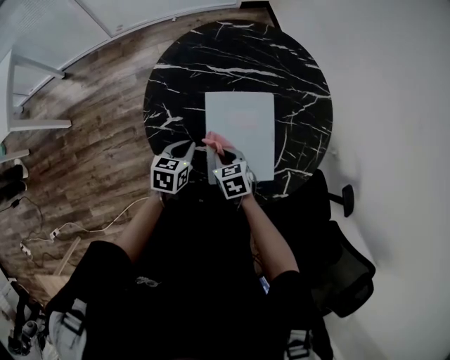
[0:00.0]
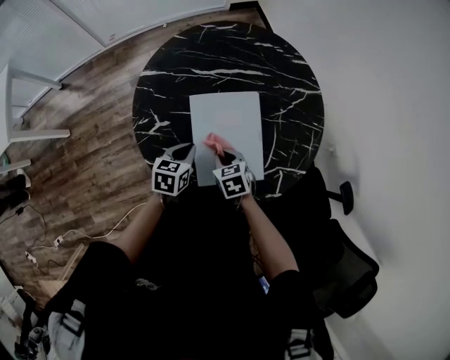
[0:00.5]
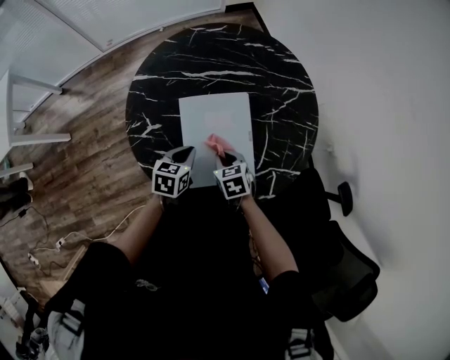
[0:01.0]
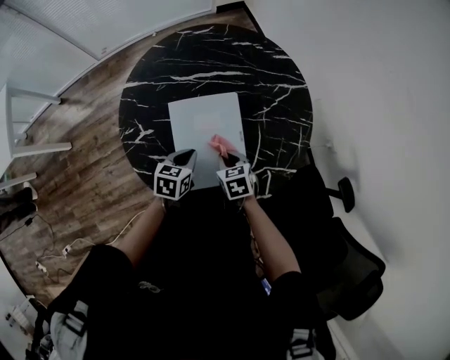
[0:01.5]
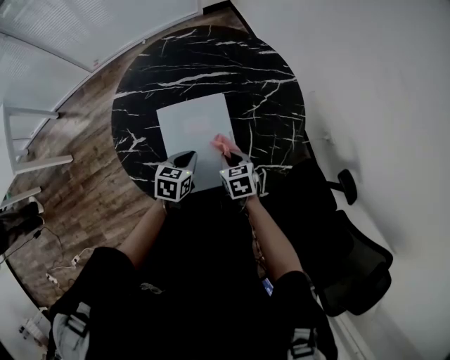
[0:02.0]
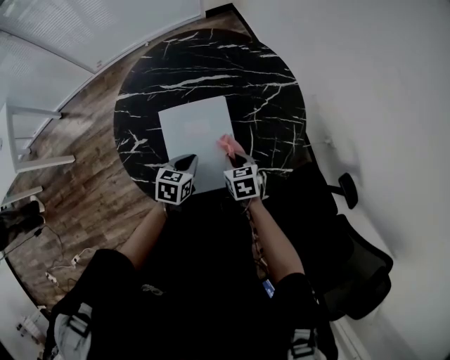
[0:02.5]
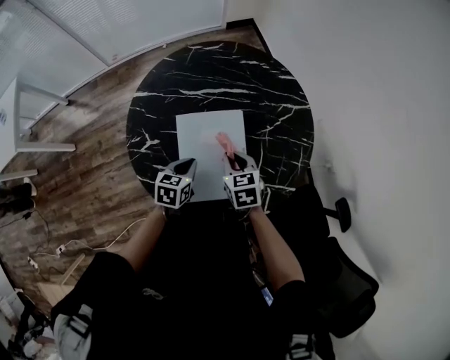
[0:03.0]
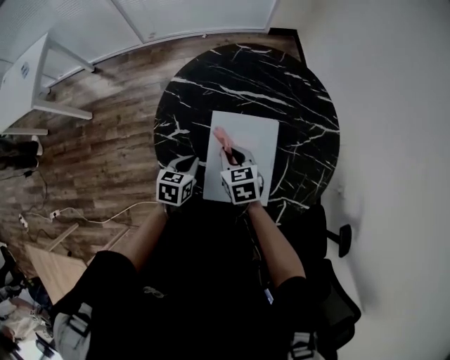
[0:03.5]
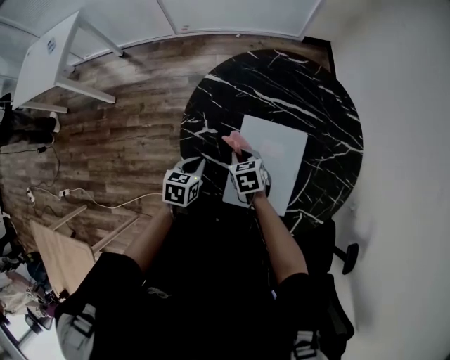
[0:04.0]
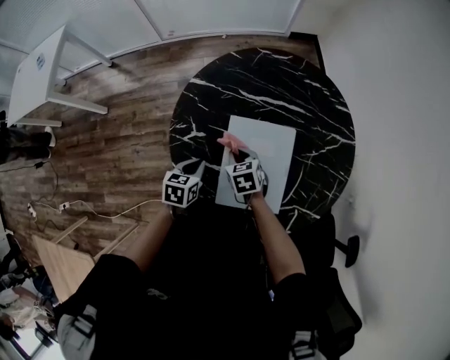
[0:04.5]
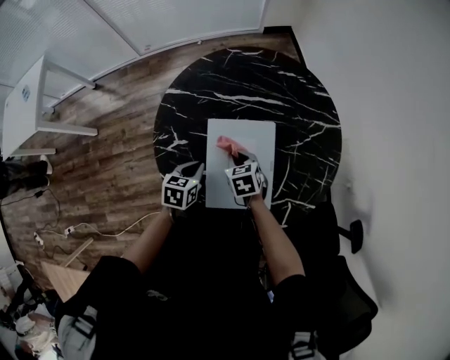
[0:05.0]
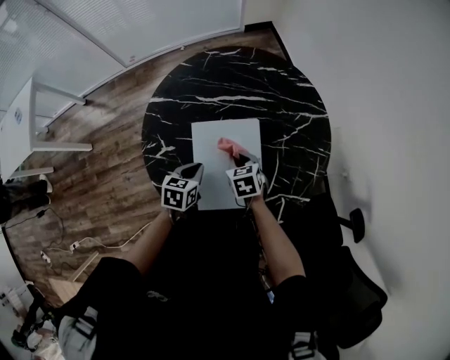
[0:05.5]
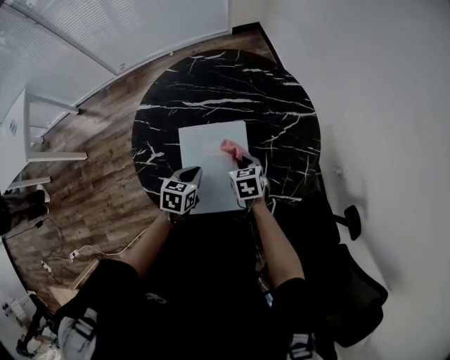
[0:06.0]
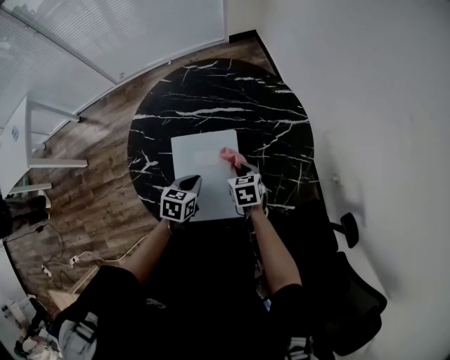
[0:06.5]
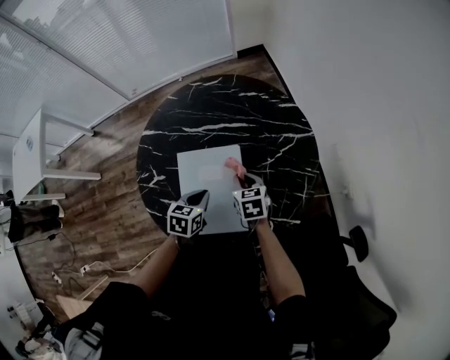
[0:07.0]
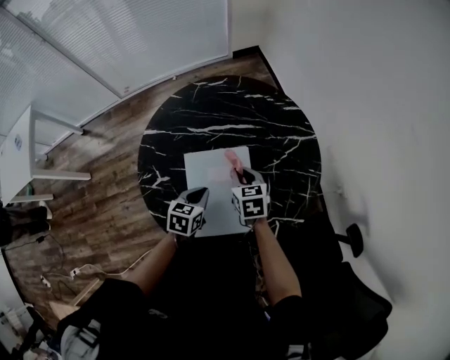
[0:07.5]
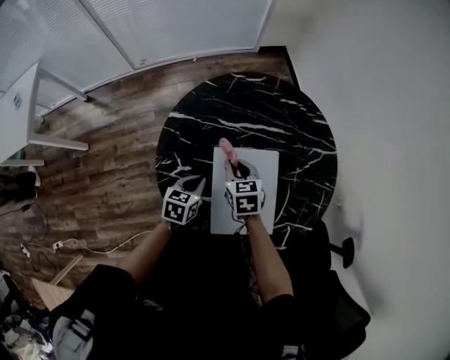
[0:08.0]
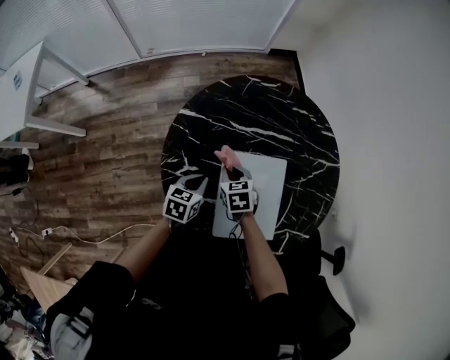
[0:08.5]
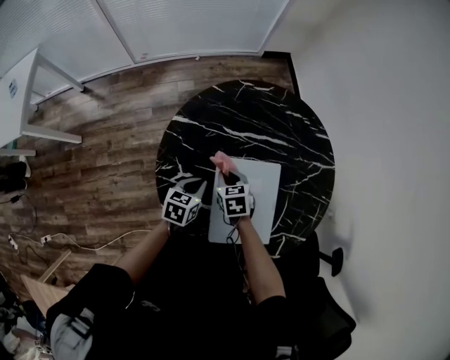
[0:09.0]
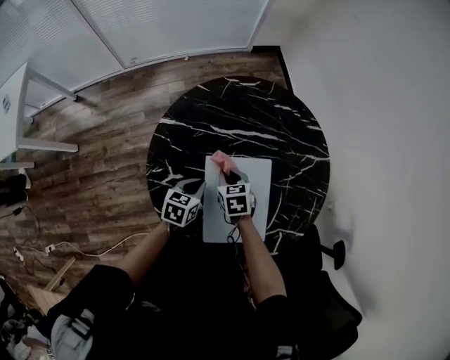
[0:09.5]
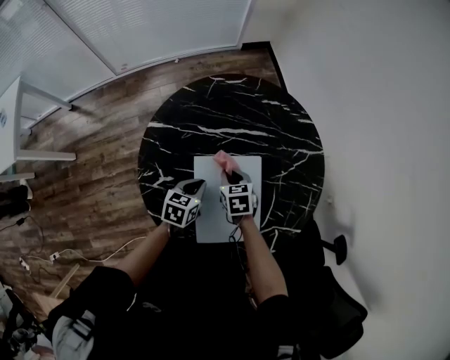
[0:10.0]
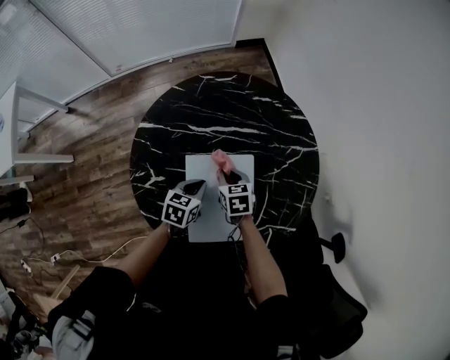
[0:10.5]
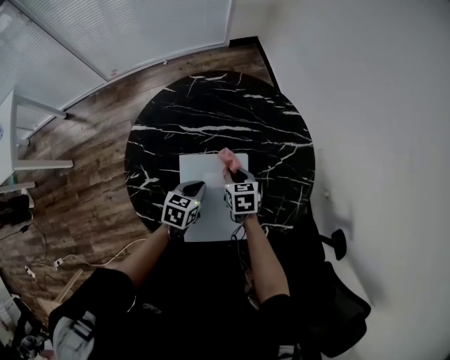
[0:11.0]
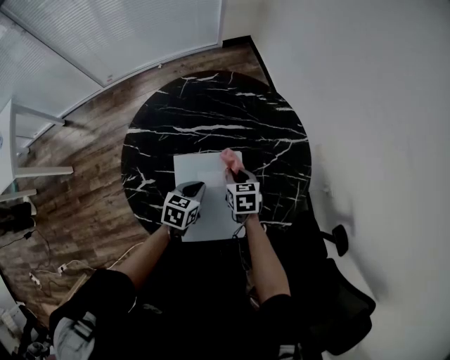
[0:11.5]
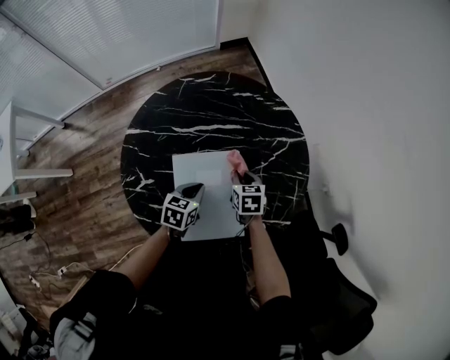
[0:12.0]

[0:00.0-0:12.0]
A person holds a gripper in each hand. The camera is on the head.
0:00.0 to 0:02.0: The grippers both shift to the right by roughly 15 cm.
0:02.0 to 0:04.0: The right gripper moves roughly 10 cm upward and comes back, and rotates approximately 30 degrees; the left gripper shifts by approximately 20 cm, and turns by approximately 30 degrees.
0:04.0 to 0:06.0: Both grippers move to the right, about 20 cm. The left gripper swivels some 20 degrees. The right gripper changes its angle by roughly 20 degrees.
0:06.0 to 0:08.0: The right gripper travels to the left and upward by some 15 cm. The left gripper shifts some 10 cm to the left.
0:08.0 to 0:10.0: The right gripper heads downward and to the right, covering some 10 cm. The left gripper travels to the right by approximately 5 cm.
0:10.0 to 0:12.0: The right gripper moves to the right, roughly 15 cm. Meanwhile the left gripper goes about 10 cm to the right.

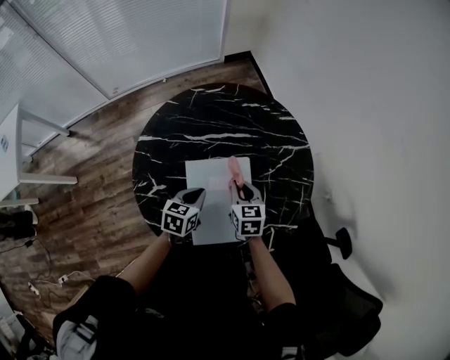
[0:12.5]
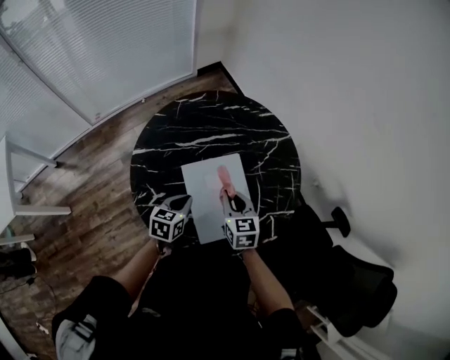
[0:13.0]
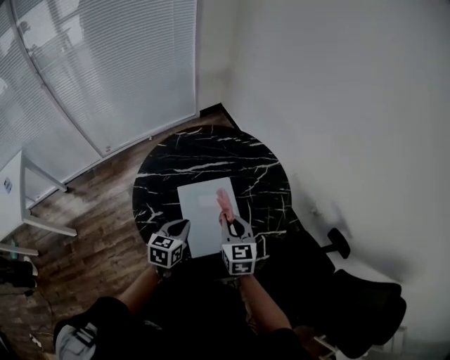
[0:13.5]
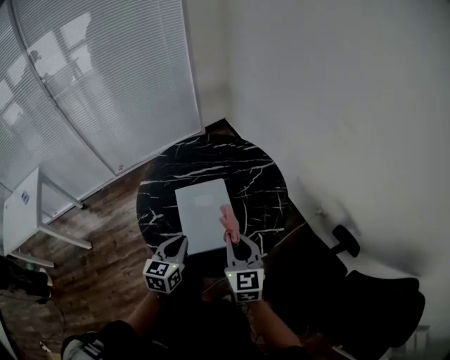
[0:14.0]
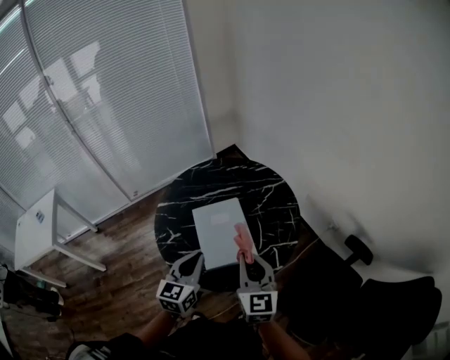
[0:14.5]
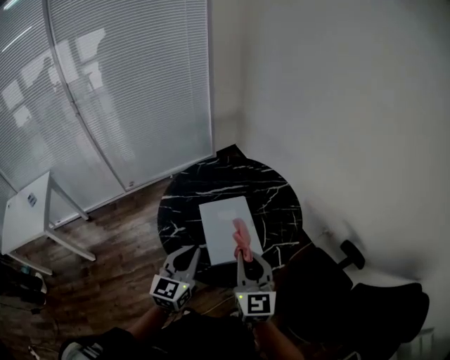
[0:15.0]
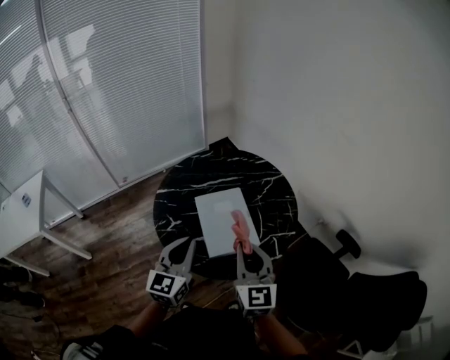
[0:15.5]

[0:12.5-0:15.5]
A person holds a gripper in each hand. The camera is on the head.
0:12.5 to 0:14.0: The left gripper goes approximately 25 cm backward and upward, and swivels some 20 degrees. The right gripper is displaced backward, upward and to the right by roughly 30 cm, and rotates some 30 degrees.
0:14.0 to 0:15.5: The two grippers go some 15 cm upward, to the left and backward. The left gripper swivels approximately 20 degrees.

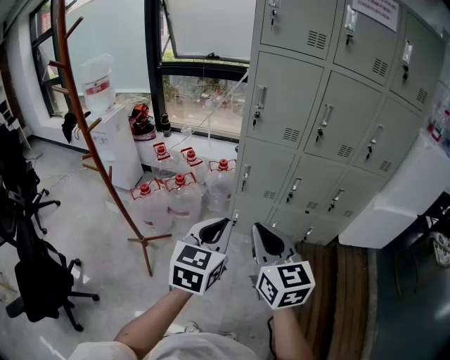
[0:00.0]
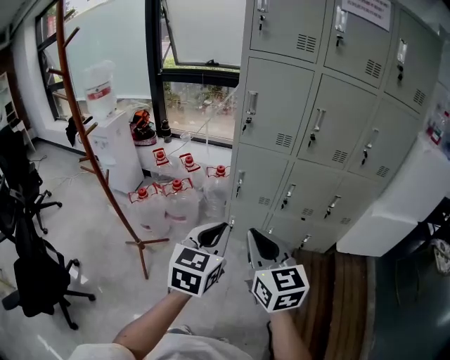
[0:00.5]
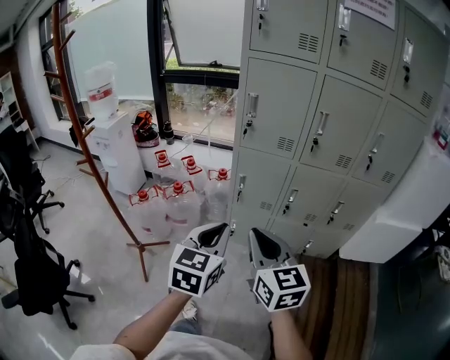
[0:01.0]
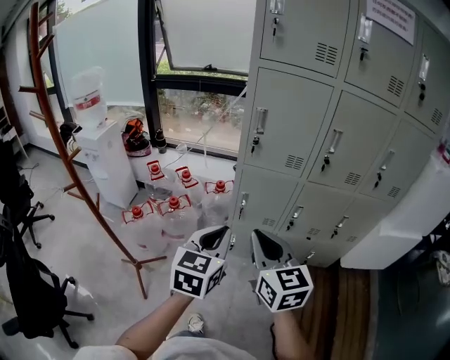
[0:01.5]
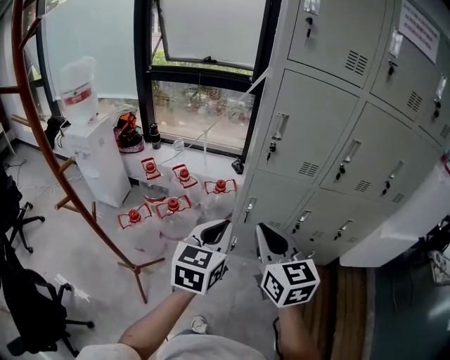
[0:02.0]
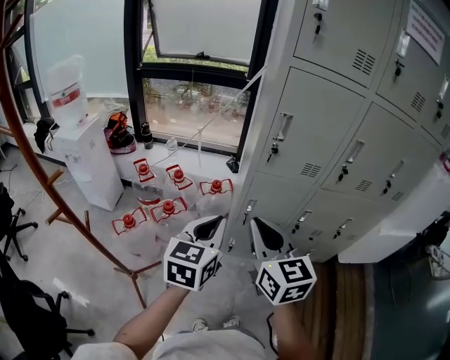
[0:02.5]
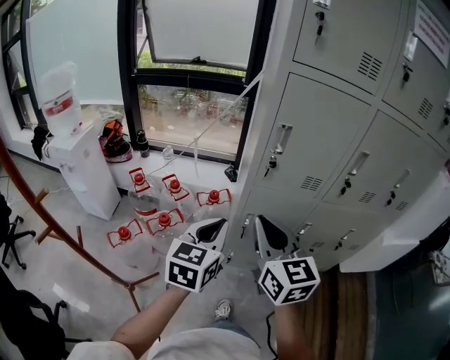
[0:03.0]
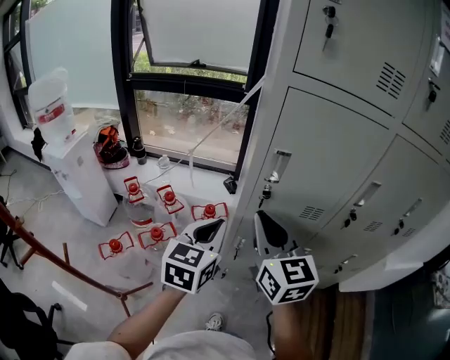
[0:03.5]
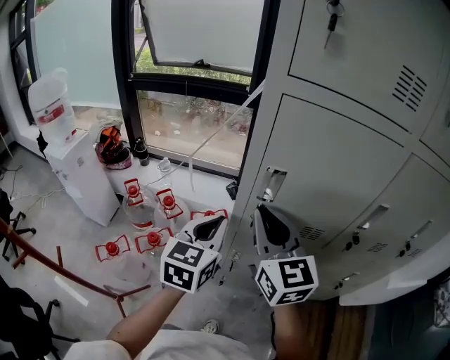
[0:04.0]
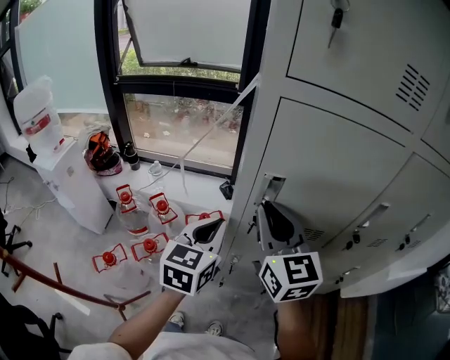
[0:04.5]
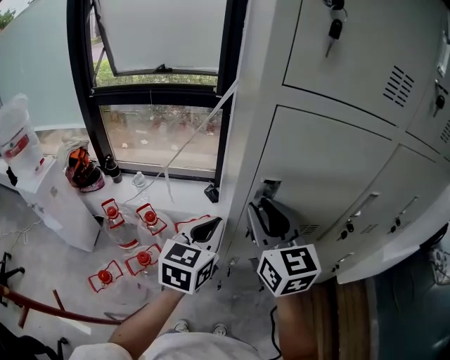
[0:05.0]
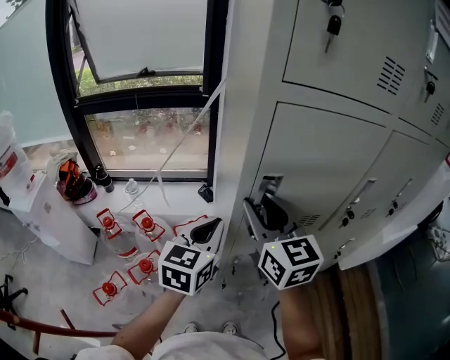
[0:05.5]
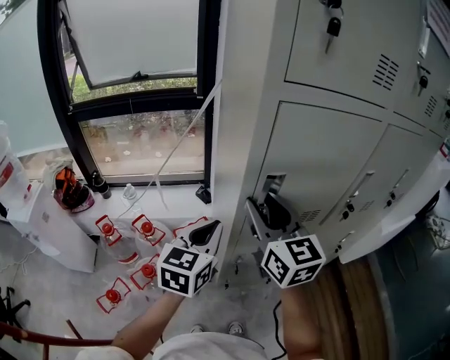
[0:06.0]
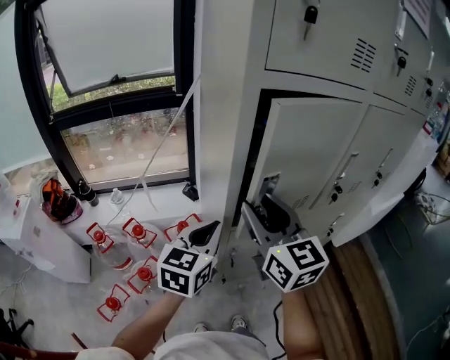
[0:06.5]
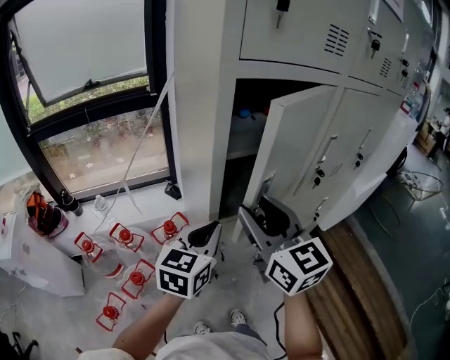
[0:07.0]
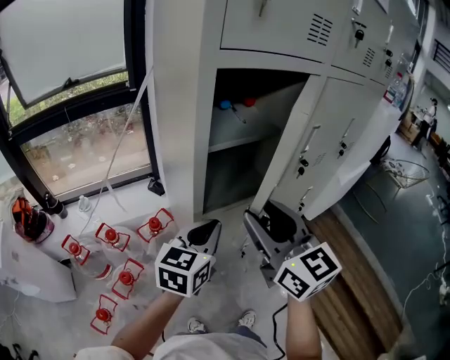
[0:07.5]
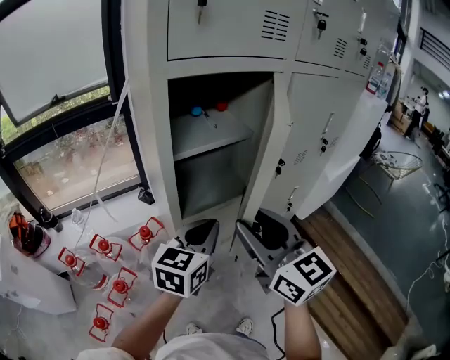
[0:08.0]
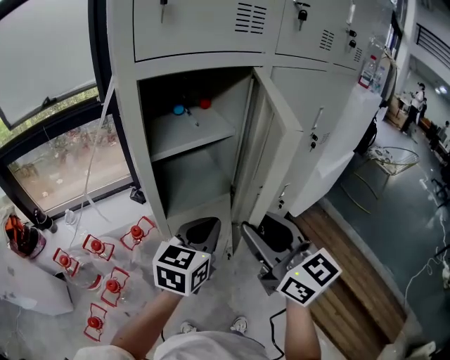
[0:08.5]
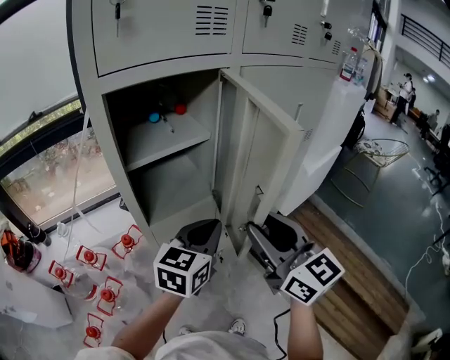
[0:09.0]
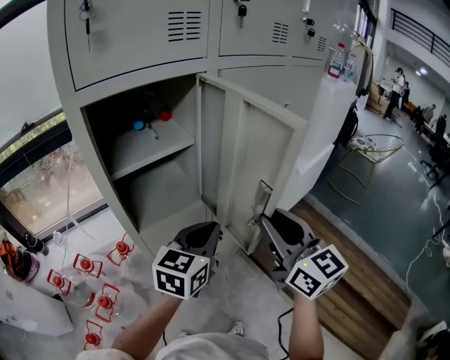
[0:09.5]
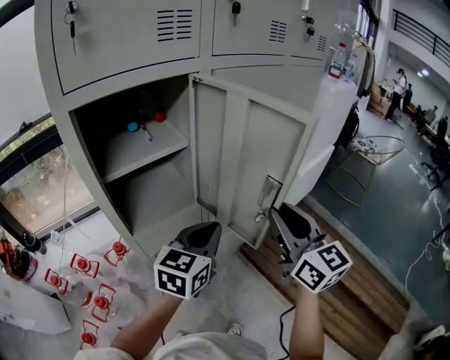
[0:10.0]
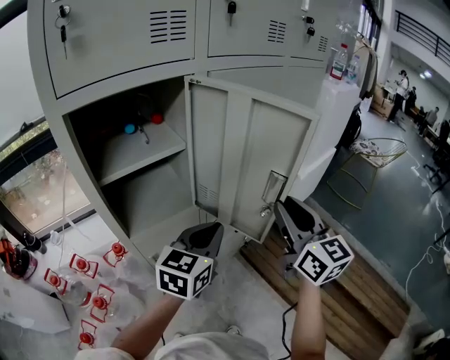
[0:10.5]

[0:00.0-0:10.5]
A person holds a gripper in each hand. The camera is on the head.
0:00.0 to 0:02.0: The grippers both shift forward by approximately 20 cm.
0:02.0 to 0:04.0: Both grippers travel together forward, roughly 30 cm.
0:04.0 to 0:06.5: The right gripper rotates approximately 20 degrees, and opens up. Meanwhile the left gripper changes its angle by approximately 30 degrees.
0:06.5 to 0:08.5: The left gripper shifts approximately 20 cm to the right. The right gripper heads to the right and backward, covering approximately 20 cm.
0:08.5 to 0:10.5: The right gripper travels to the right and forward by roughly 20 cm, and rotates some 20 degrees; the left gripper shifts roughly 15 cm to the right.

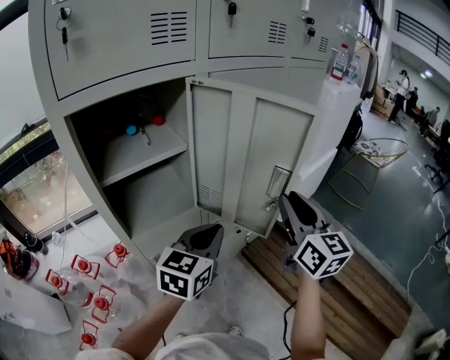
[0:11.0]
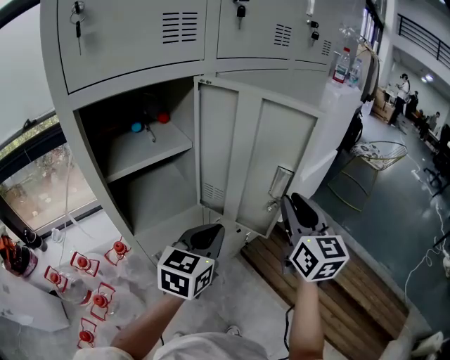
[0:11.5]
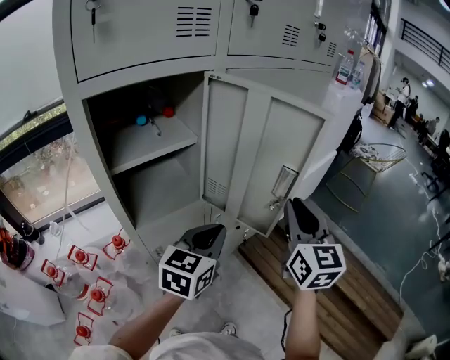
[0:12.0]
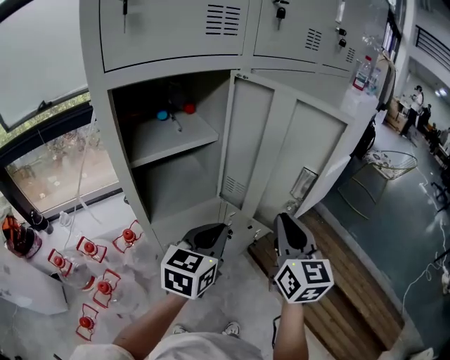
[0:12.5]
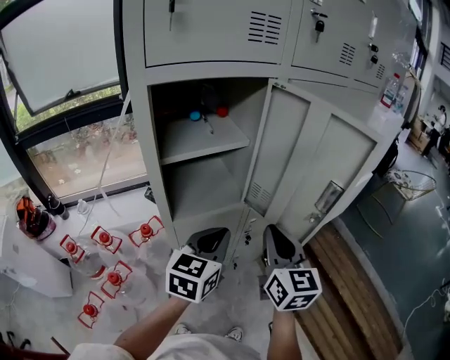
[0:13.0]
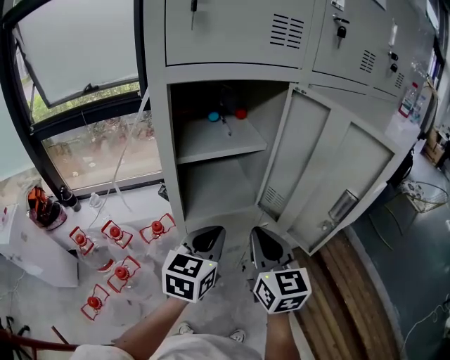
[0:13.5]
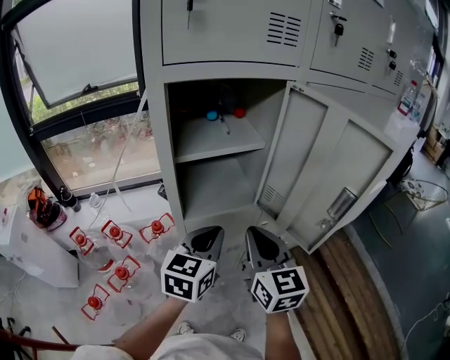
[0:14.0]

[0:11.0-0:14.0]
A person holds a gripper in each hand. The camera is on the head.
0:11.0 to 0:12.5: The left gripper moves approximately 5 cm. Meanwhile the right gripper travels to the left and backward by approximately 10 cm.
0:12.5 to 0:14.0: The left gripper shifts about 10 cm to the left, while the right gripper goes some 15 cm to the left, and turns by some 20 degrees.
